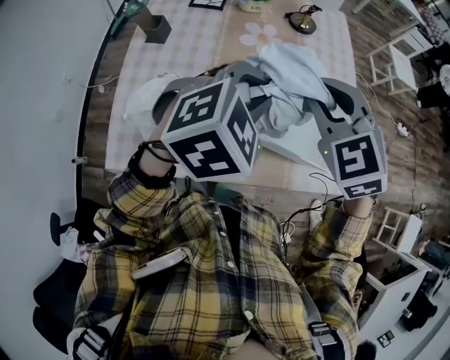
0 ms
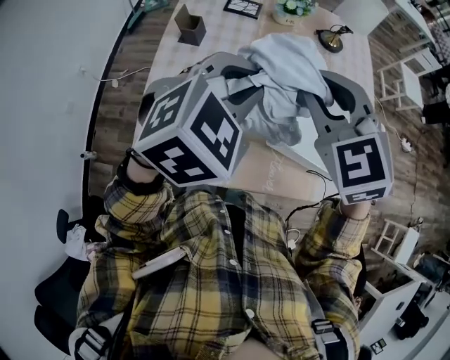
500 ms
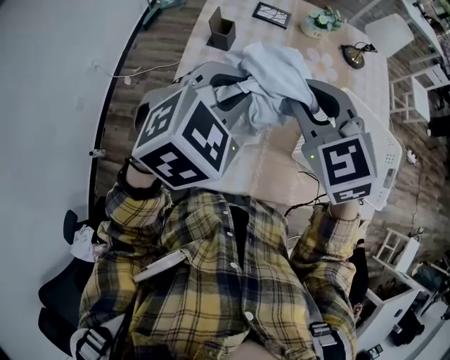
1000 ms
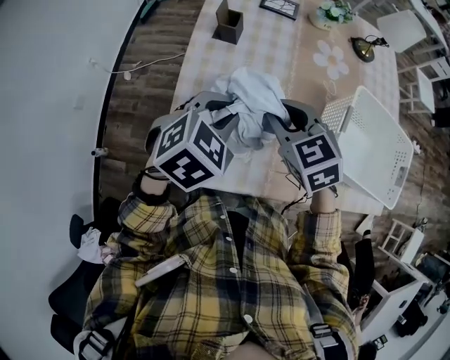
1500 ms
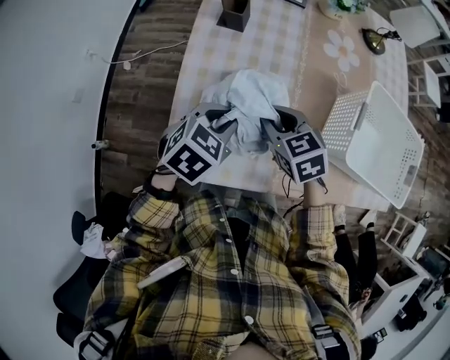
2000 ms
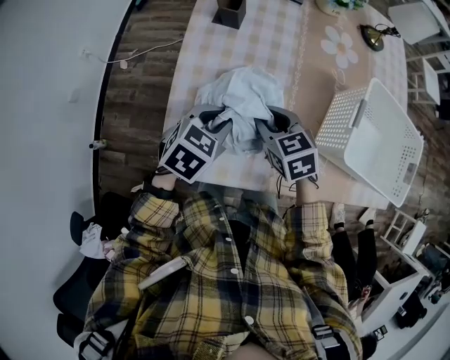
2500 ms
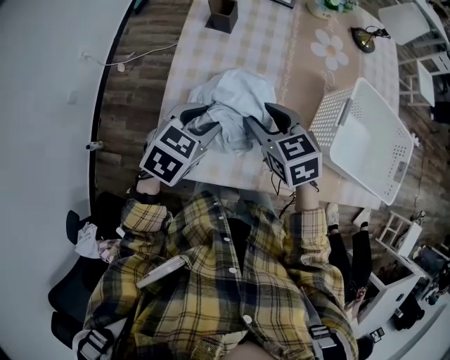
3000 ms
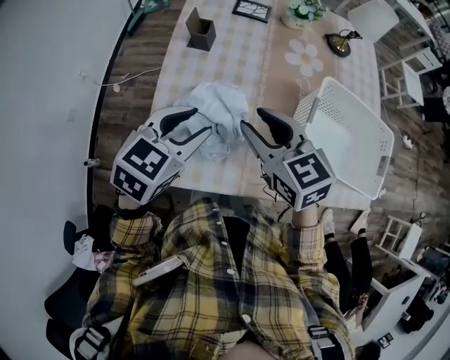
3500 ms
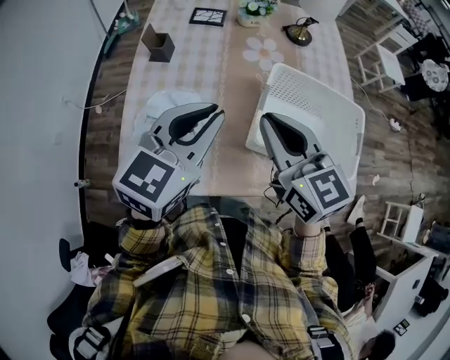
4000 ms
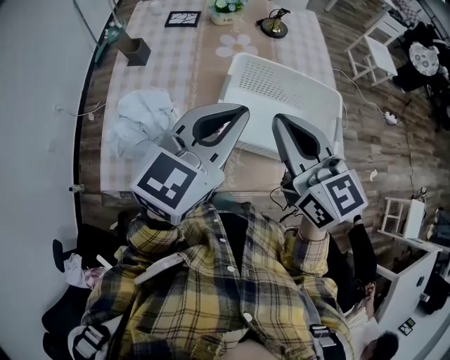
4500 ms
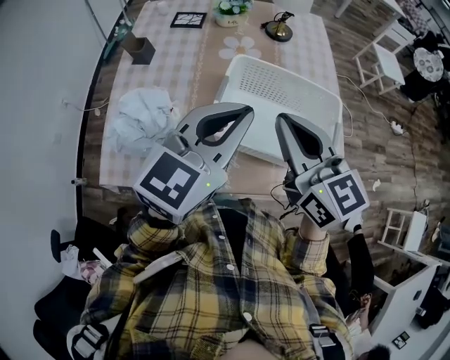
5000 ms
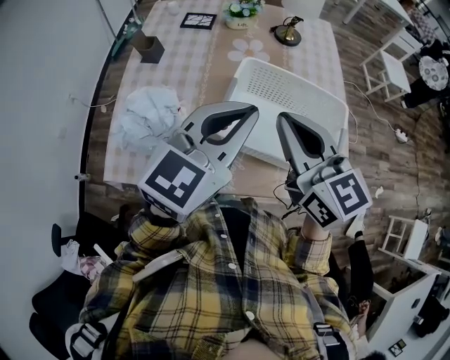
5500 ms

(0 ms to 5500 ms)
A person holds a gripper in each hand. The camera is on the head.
0 ms - 2000 ms: The two grippers go roughly 40 cm to the left and downward. The left gripper changes its angle by approximately 30 degrees. The right gripper turns by some 40 degrees.
2000 ms - 3500 ms: Both grippers move upward, approximately 15 cm. The right gripper swivels some 20 degrees.
3500 ms - 5500 ms: Both grippers travel together to the right and upward, some 30 cm. The left gripper swivels some 30 degrees, and closes up. The right gripper closes its fingers.

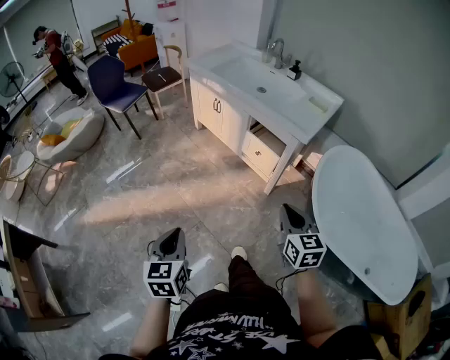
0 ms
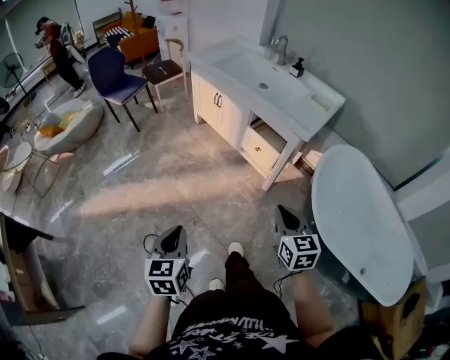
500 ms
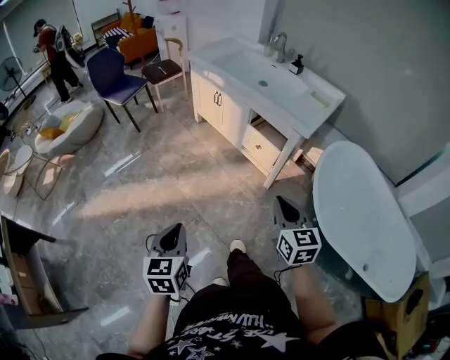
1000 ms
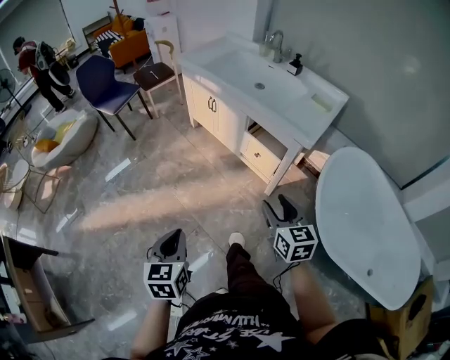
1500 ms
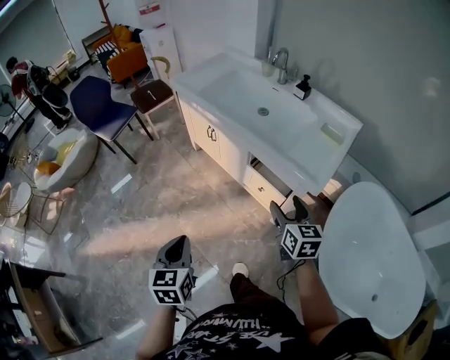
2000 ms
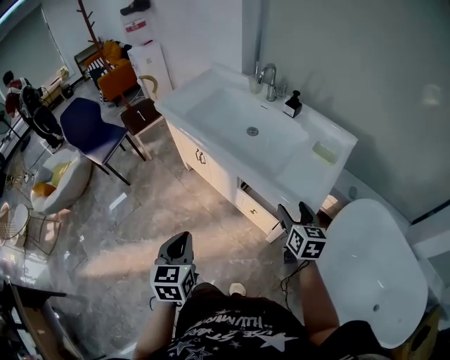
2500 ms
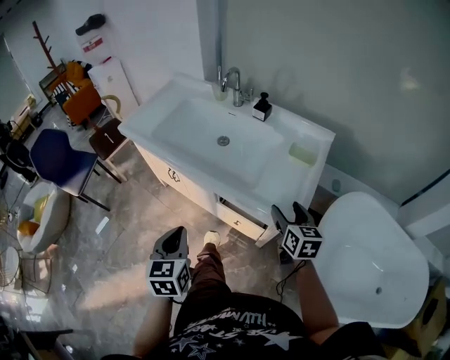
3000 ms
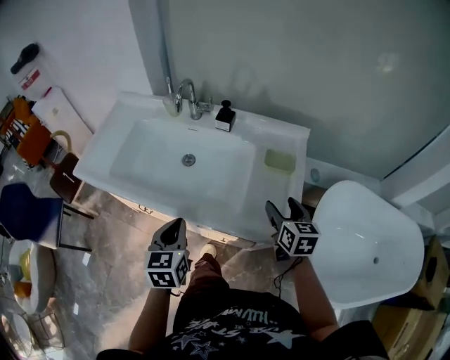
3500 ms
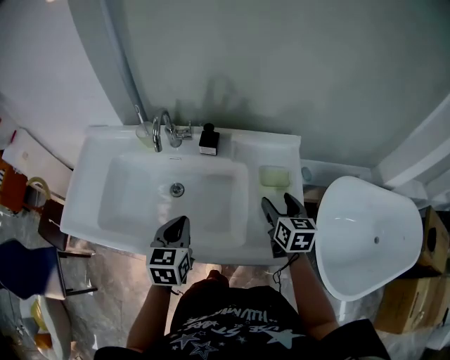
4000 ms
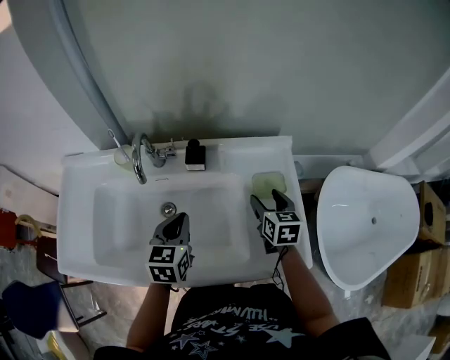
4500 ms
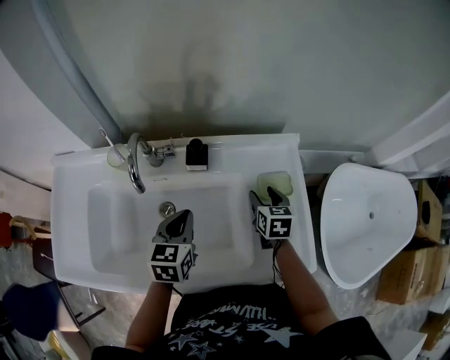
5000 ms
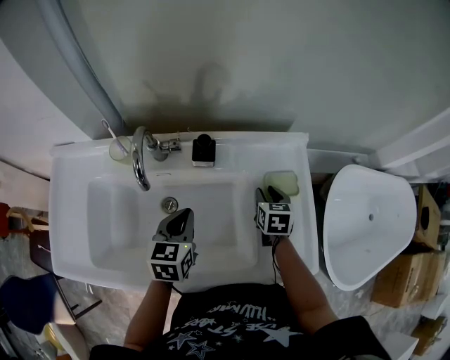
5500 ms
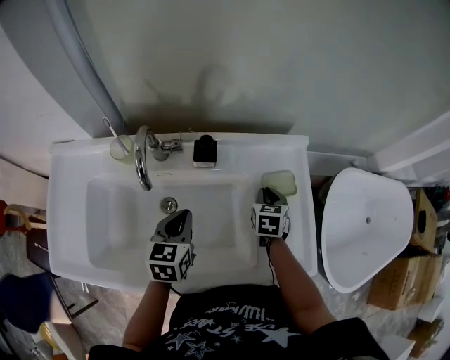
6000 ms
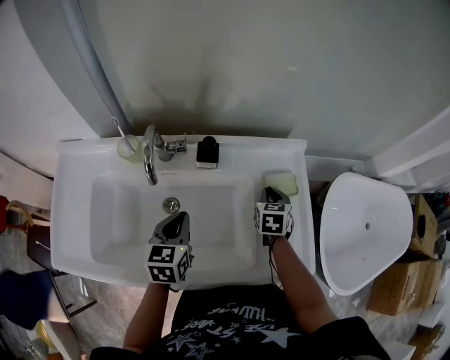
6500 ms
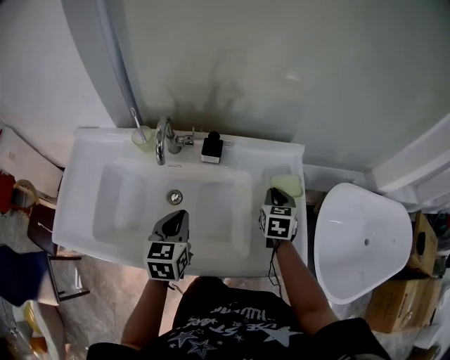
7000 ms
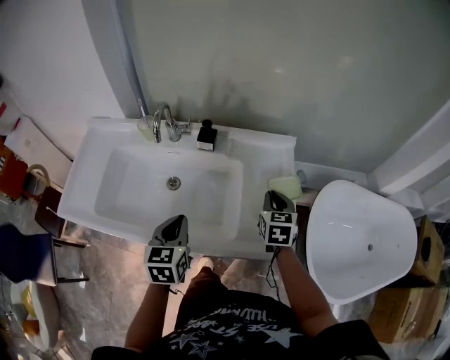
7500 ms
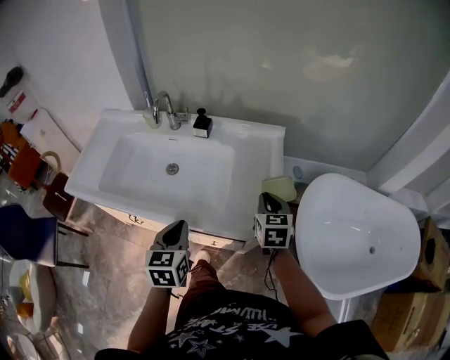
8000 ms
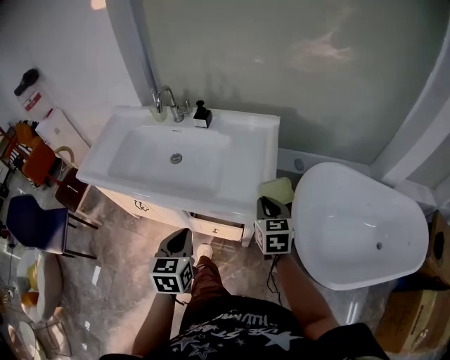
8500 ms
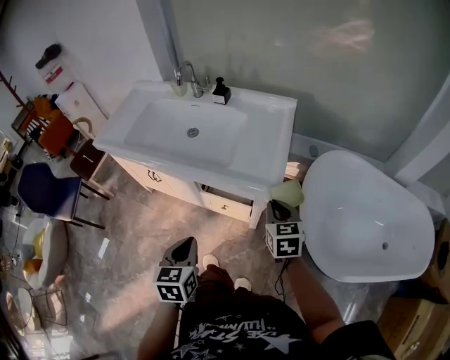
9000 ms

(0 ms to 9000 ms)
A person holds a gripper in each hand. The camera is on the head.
0 ms - 2000 ms: Both grippers travel together forward, approximately 30 cm. The right gripper opens its fingers.
2000 ms - 4500 ms: The pair of grippers is taken roughly 60 cm. The right gripper swivels approximately 50 degrees; the left gripper changes its angle by about 50 degrees.
4500 ms - 7000 ms: The right gripper goes downward and returns, some 10 cm each way, and closes its fingers.
7000 ms - 9000 ms: The right gripper shifts by roughly 35 cm, and swivels approximately 30 degrees; the left gripper moves approximately 50 cm.

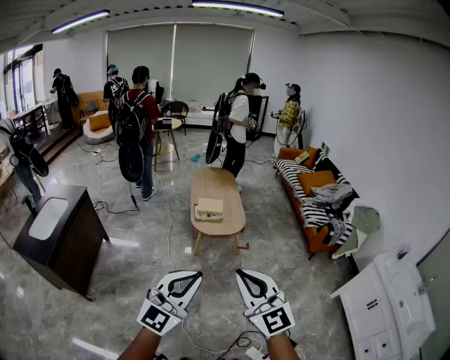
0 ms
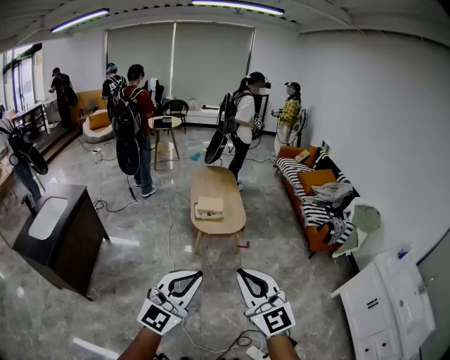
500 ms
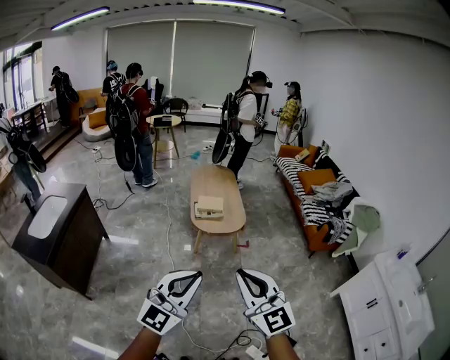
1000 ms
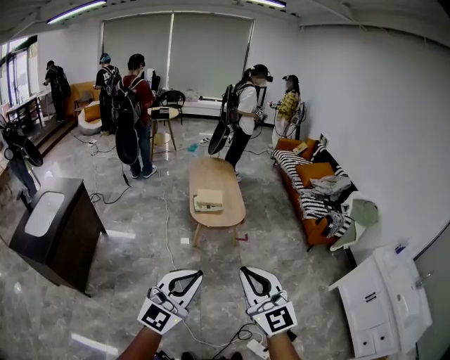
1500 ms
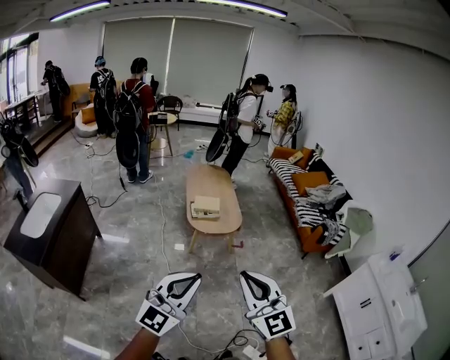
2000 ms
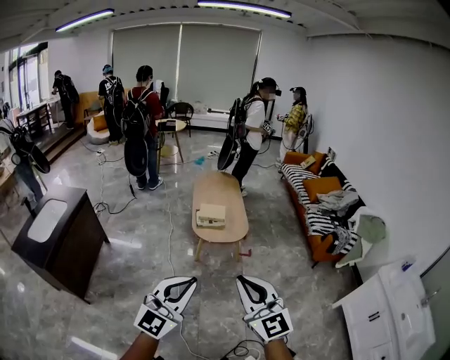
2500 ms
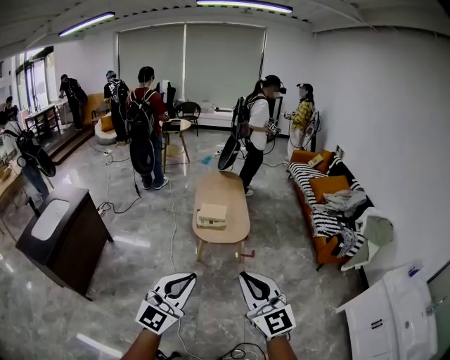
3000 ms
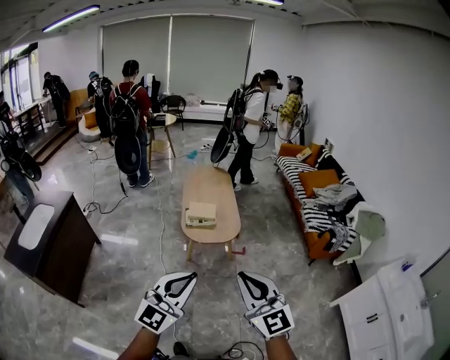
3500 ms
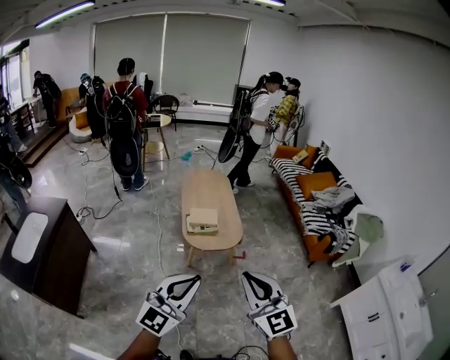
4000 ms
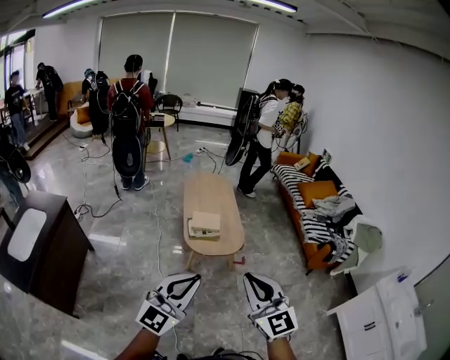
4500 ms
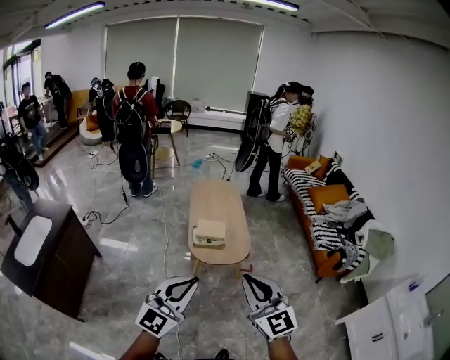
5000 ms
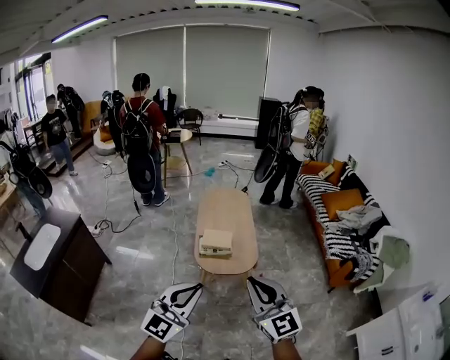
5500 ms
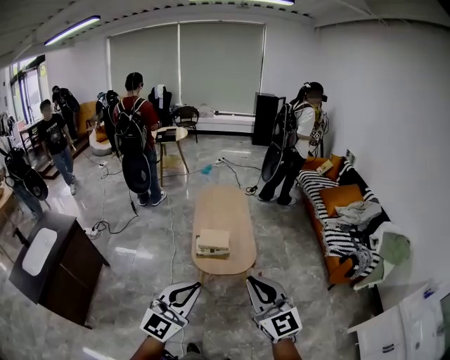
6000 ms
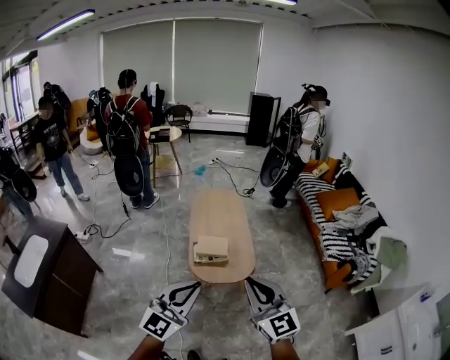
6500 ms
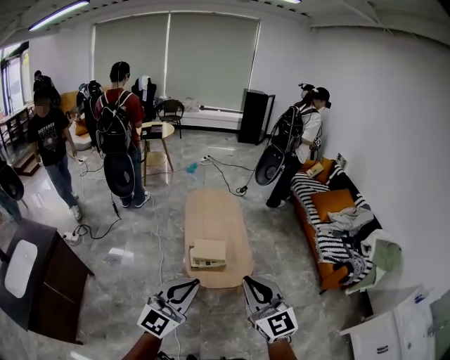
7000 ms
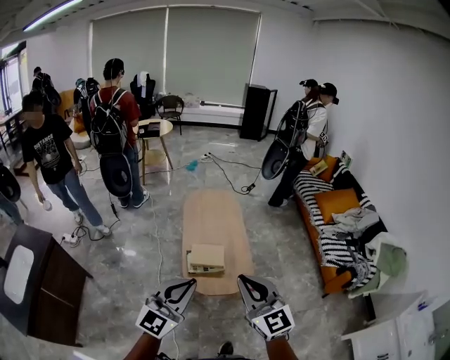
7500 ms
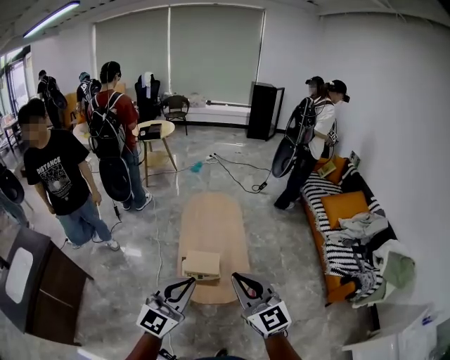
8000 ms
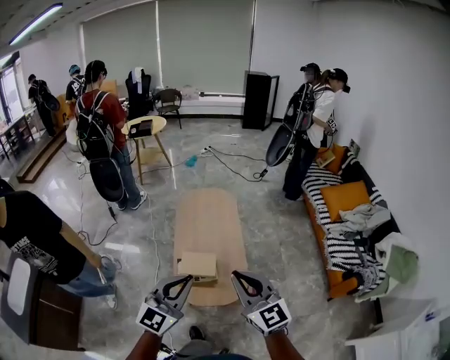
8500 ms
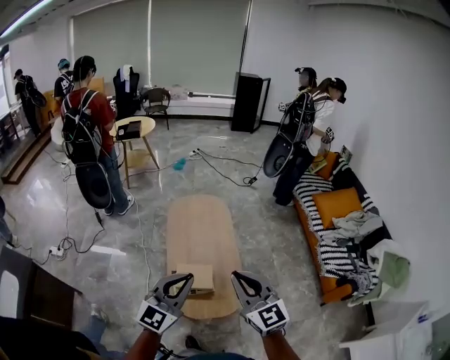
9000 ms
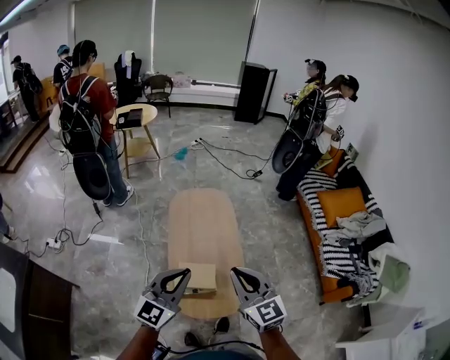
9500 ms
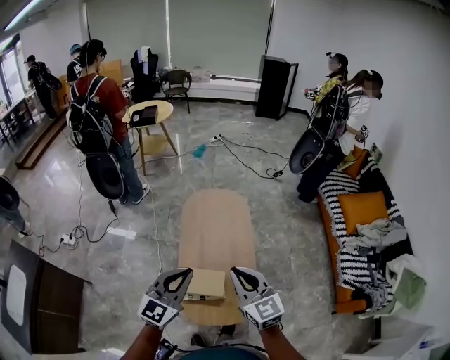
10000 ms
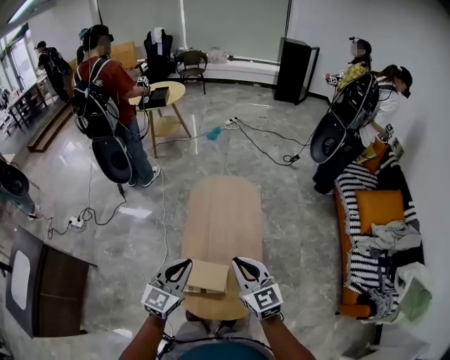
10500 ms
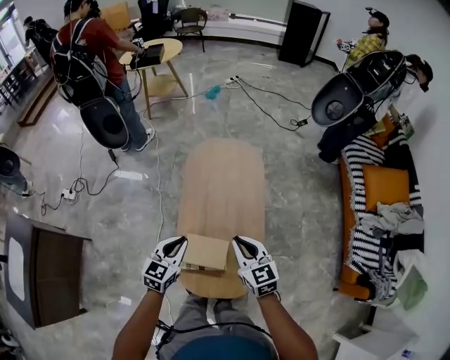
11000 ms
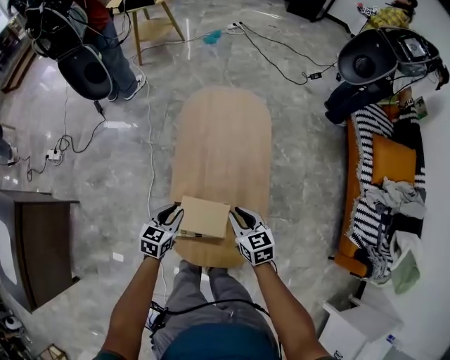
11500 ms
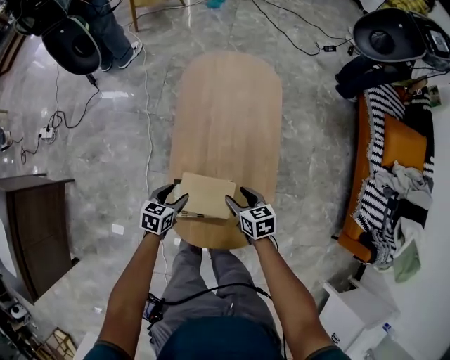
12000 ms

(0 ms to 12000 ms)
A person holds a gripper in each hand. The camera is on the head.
0 ms - 2000 ms: The left gripper heads to the left, covering about 5 cm.
2000 ms - 4000 ms: Both grippers travel together forward, approximately 20 cm.
4000 ms - 6000 ms: The left gripper shifts about 15 cm forward; the right gripper shifts approximately 20 cm forward and to the right.
6000 ms - 8000 ms: The grippers both shift forward by some 30 cm.
8000 ms - 10000 ms: The two grippers go approximately 30 cm forward.
10000 ms - 12000 ms: The two grippers go roughly 50 cm downward. The right gripper angles its fingers downward, by some 40 degrees, and opens up, while the left gripper angles its fingers downward, by approximately 40 degrees, and opens.
